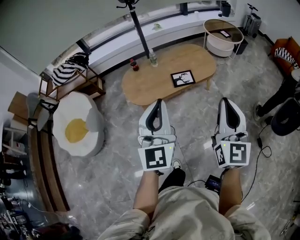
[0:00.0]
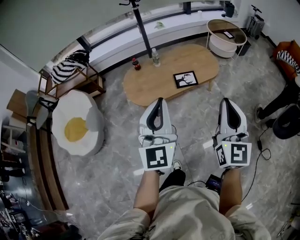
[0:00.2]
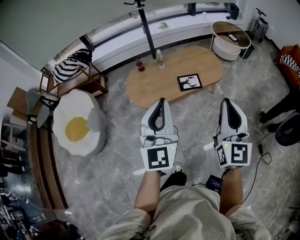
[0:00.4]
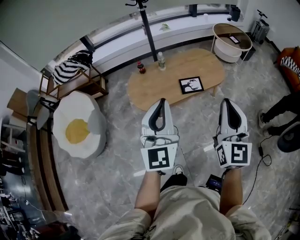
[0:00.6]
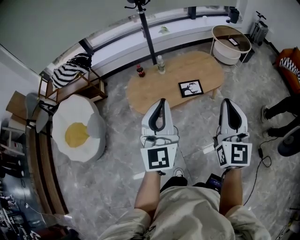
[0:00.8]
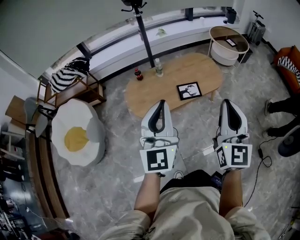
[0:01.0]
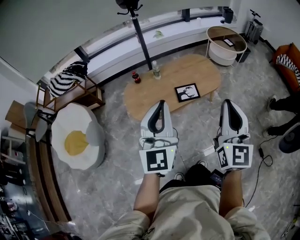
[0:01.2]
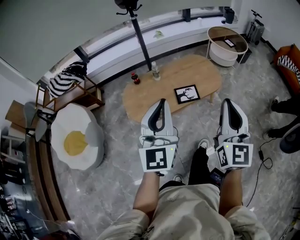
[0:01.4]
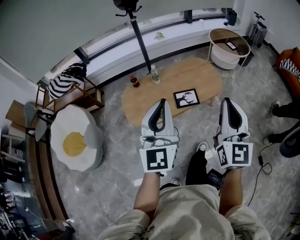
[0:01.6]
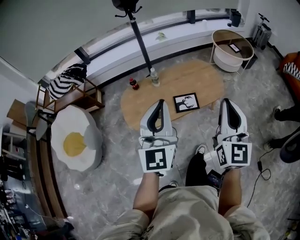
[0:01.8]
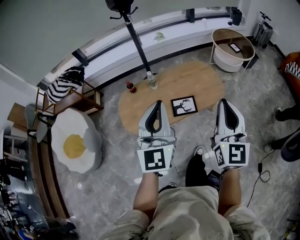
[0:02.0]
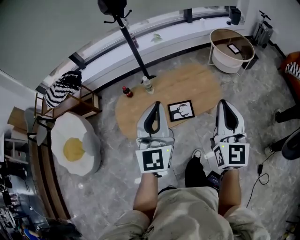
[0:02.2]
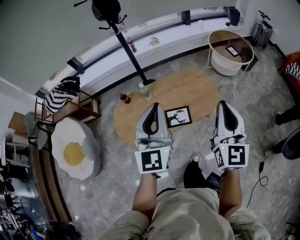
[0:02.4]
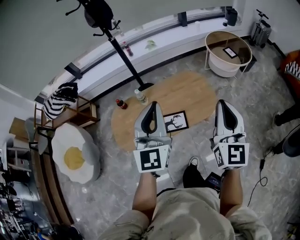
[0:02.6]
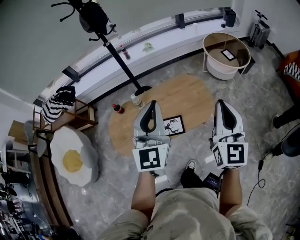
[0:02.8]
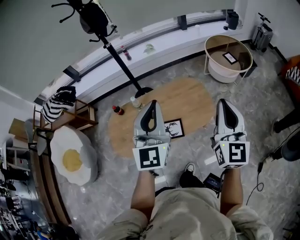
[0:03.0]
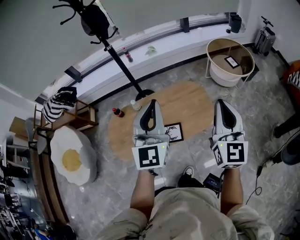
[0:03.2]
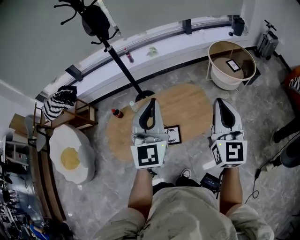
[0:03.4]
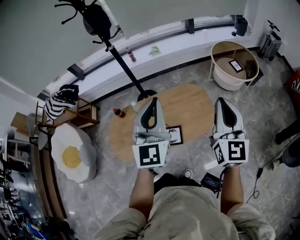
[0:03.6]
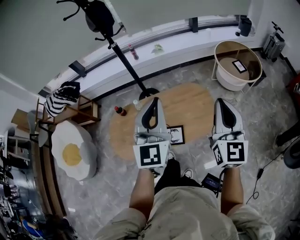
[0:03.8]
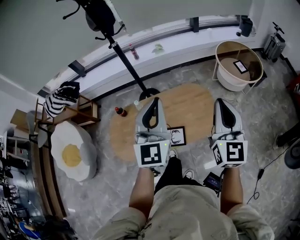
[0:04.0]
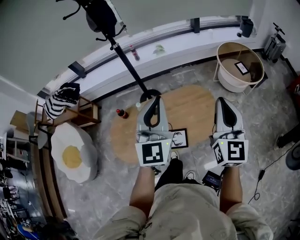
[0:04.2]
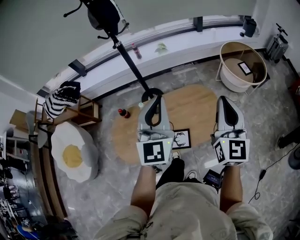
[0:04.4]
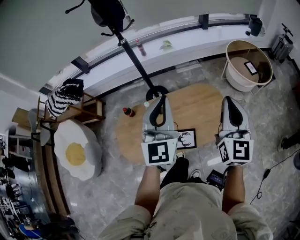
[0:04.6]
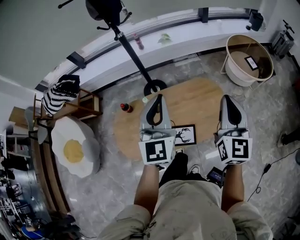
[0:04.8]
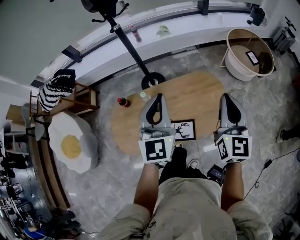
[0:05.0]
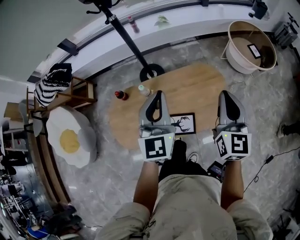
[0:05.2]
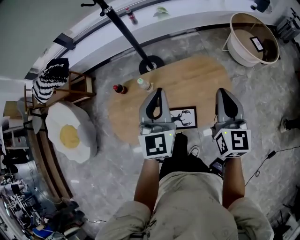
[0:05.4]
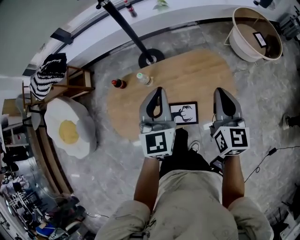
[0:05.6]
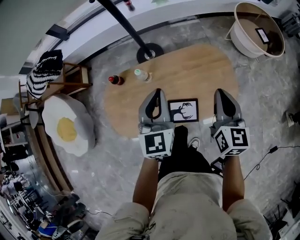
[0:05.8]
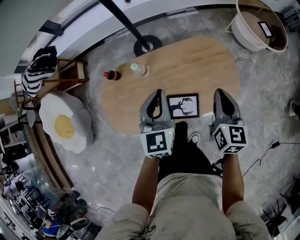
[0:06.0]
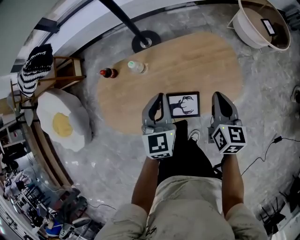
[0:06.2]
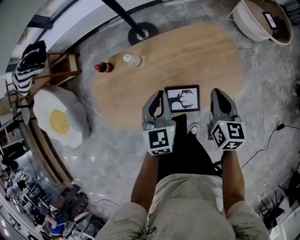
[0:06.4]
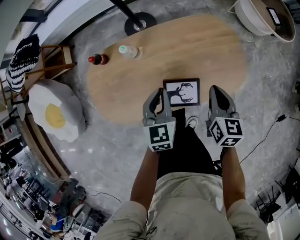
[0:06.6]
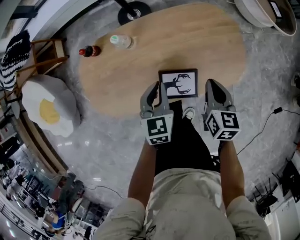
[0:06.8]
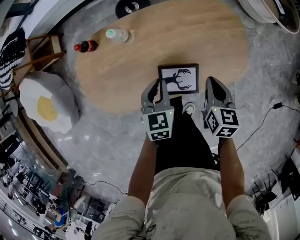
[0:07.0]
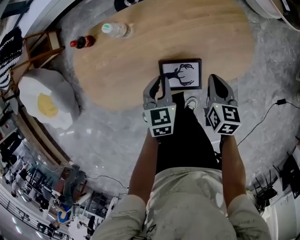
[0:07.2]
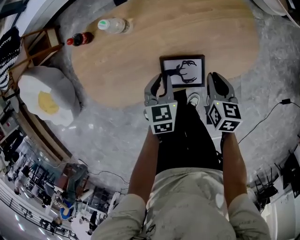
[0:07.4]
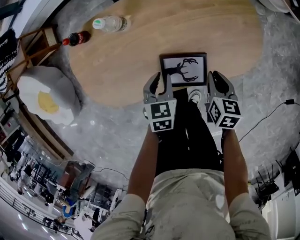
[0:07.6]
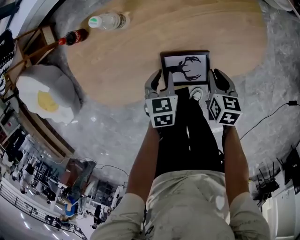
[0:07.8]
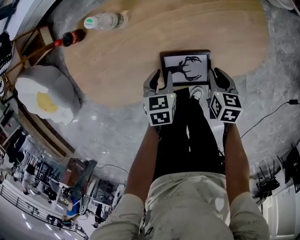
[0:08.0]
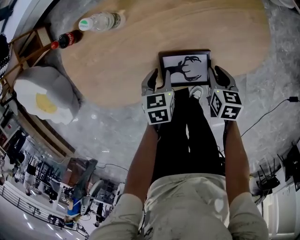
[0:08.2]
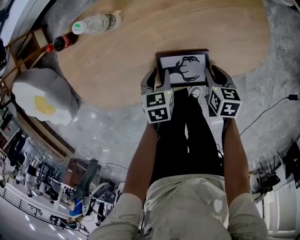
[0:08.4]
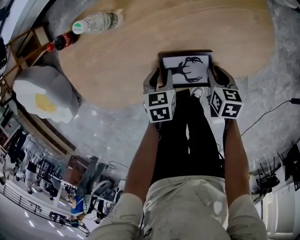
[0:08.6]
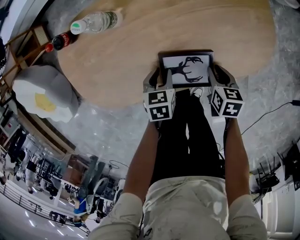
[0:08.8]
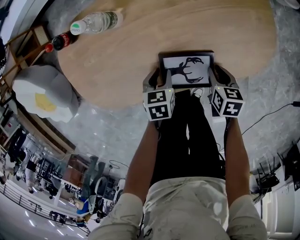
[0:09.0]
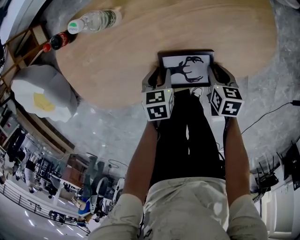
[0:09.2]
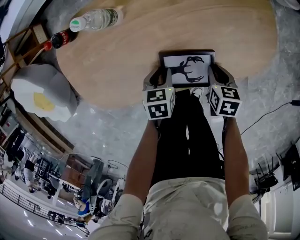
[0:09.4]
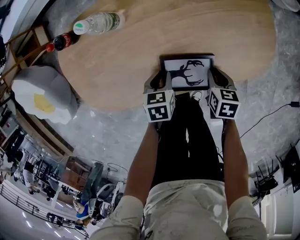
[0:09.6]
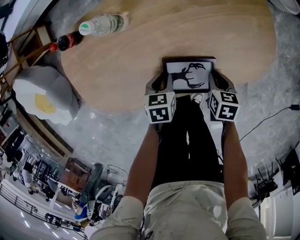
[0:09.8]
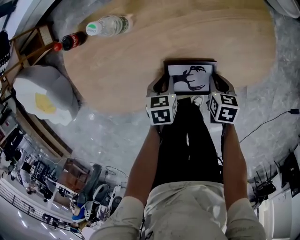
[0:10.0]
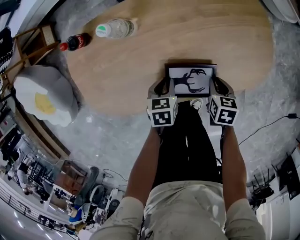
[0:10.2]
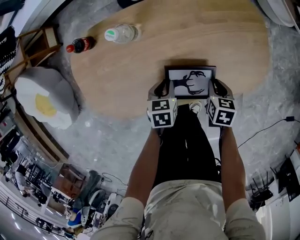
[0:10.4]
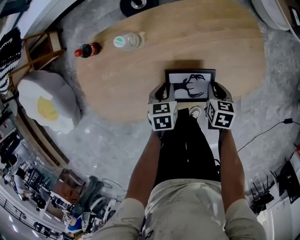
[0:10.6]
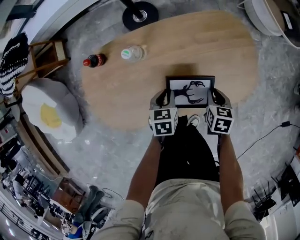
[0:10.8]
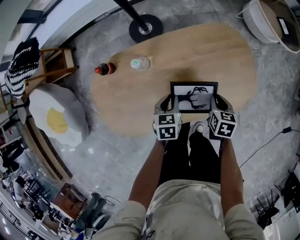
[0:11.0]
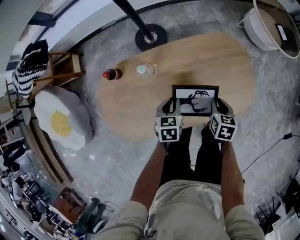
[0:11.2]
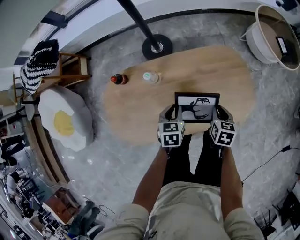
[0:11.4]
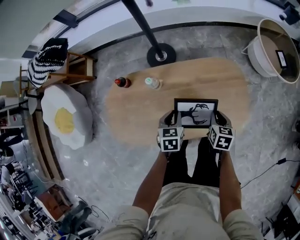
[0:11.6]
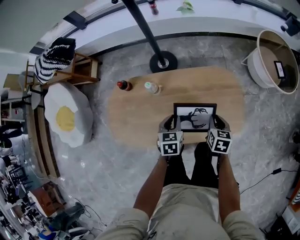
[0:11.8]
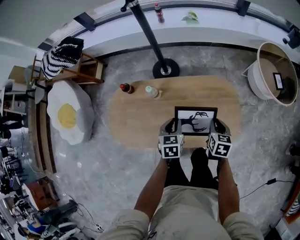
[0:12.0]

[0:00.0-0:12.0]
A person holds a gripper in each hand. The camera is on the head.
0:00.0 to 0:01.6: Both grippers move forward, some 15 cm.
0:01.6 to 0:03.0: Both grippers move forward and to the right, about 35 cm.
0:03.0 to 0:04.4: The left gripper heads forward, covering roughly 10 cm; the right gripper shifts approximately 15 cm forward and to the left.
0:04.4 to 0:06.0: Both grippers travel together downward, approximately 25 cm. The left gripper rotates roughly 30 degrees. The right gripper rotates some 30 degrees.
0:06.0 to 0:07.6: The two grippers go roughly 30 cm downward. The right gripper swivels roughly 30 degrees, while the left gripper tilts its fingers approximately 30 degrees downward, and opens its fingers.
0:07.6 to 0:09.0: The grippers both shift downward by about 10 cm.
0:09.0 to 0:10.4: There are only small adjustments of the grippers.
0:10.4 to 0:12.0: The left gripper travels upward by approximately 25 cm, and changes its angle by approximately 20 degrees; the right gripper heads upward and forward, covering approximately 25 cm, and turns by approximately 20 degrees.

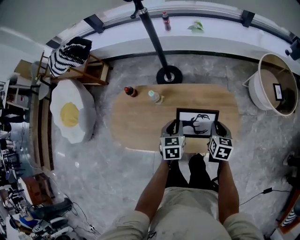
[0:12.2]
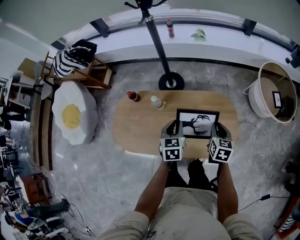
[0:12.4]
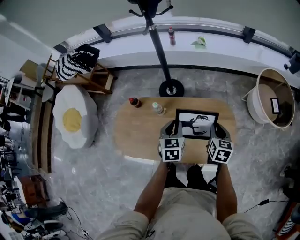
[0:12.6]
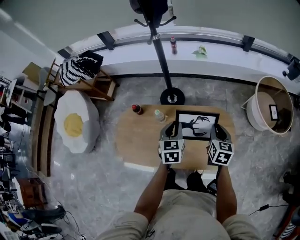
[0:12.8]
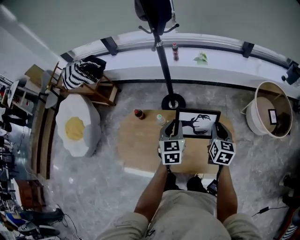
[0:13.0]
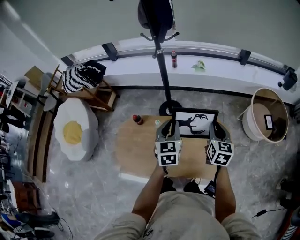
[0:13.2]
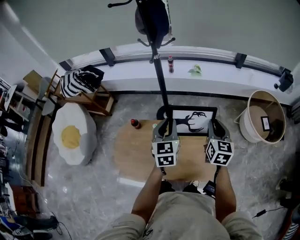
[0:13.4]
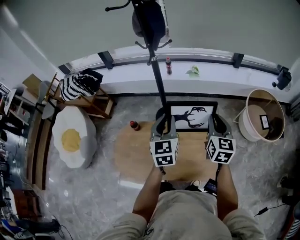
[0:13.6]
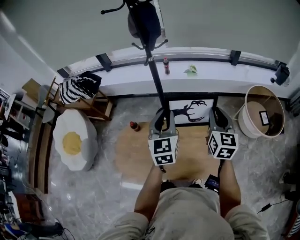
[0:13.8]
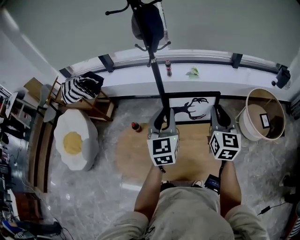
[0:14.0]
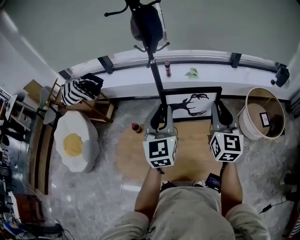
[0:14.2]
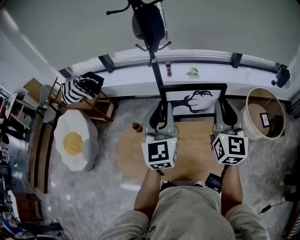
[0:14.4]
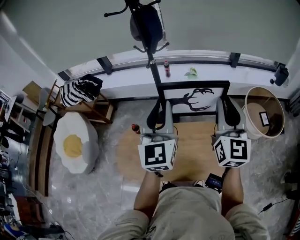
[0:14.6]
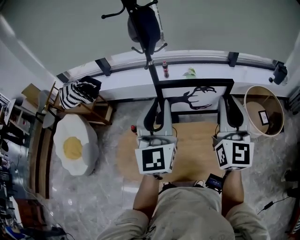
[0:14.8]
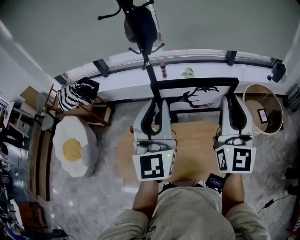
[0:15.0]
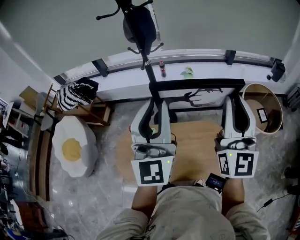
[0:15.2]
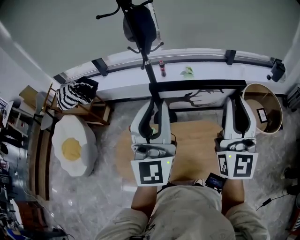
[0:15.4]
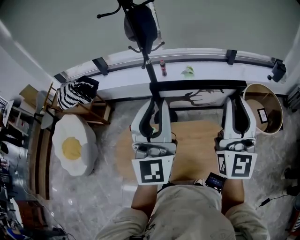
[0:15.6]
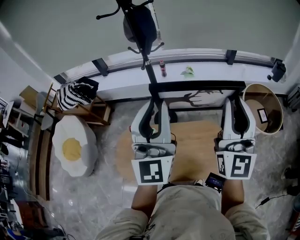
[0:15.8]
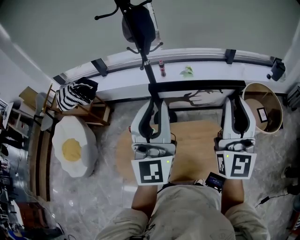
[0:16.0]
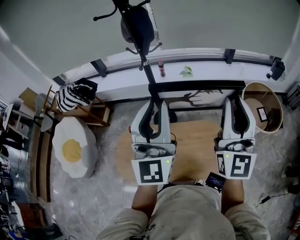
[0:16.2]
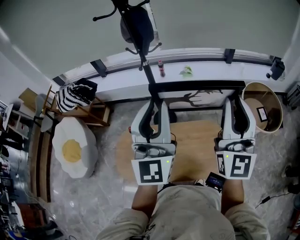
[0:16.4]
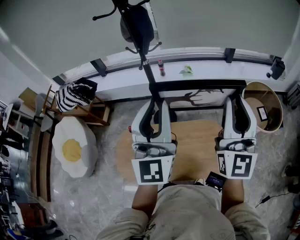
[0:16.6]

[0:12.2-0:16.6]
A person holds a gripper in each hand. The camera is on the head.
0:12.2 to 0:13.6: The grippers both shift upward by roughly 25 cm. The right gripper tips its fingers upward by some 30 degrees. The left gripper turns by some 30 degrees.
0:13.6 to 0:15.2: Both grippers travel together upward, about 25 cm. The right gripper angles its fingers upward, by some 40 degrees. The left gripper angles its fingers upward, by approximately 40 degrees.
0:15.2 to 0:16.6: The grippers stay close to where they were, moving slightly.

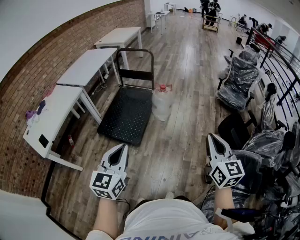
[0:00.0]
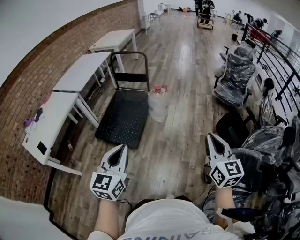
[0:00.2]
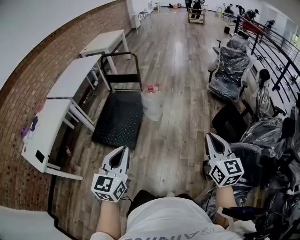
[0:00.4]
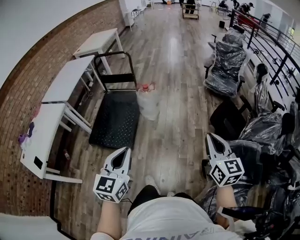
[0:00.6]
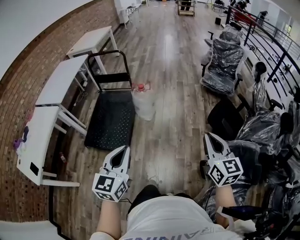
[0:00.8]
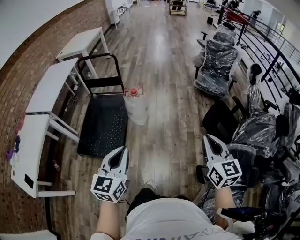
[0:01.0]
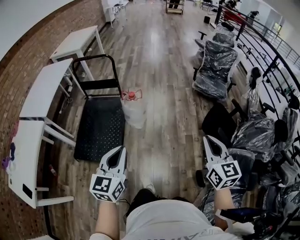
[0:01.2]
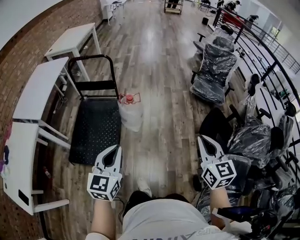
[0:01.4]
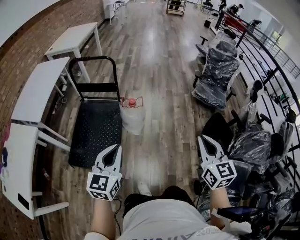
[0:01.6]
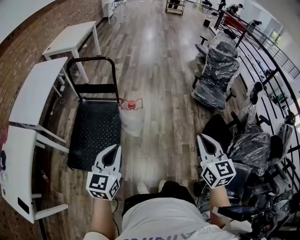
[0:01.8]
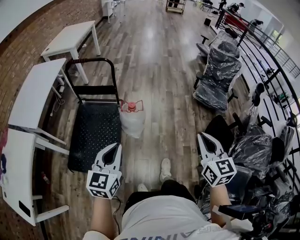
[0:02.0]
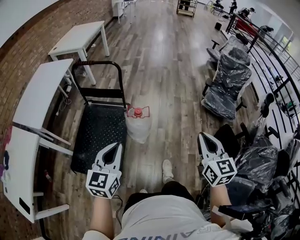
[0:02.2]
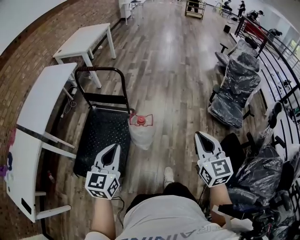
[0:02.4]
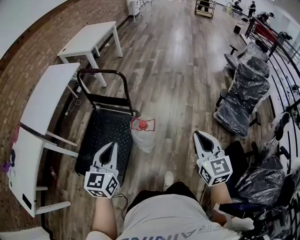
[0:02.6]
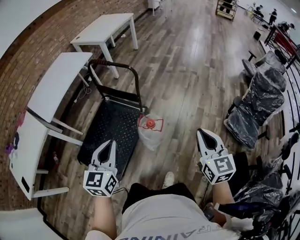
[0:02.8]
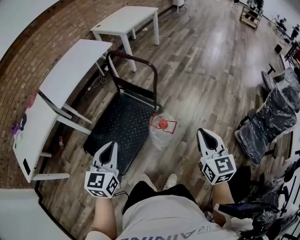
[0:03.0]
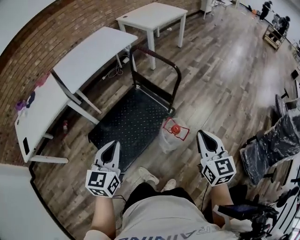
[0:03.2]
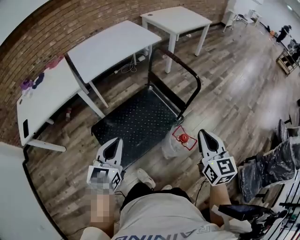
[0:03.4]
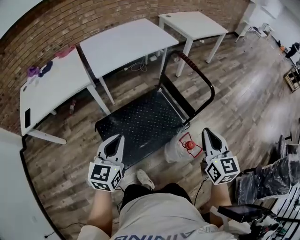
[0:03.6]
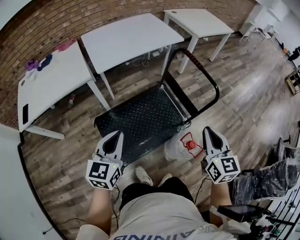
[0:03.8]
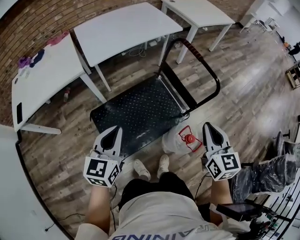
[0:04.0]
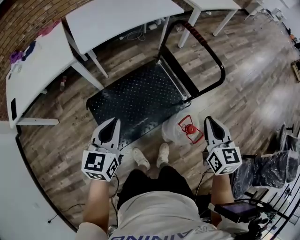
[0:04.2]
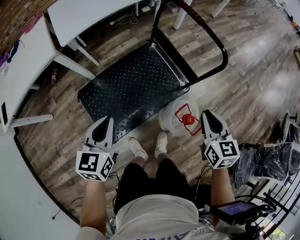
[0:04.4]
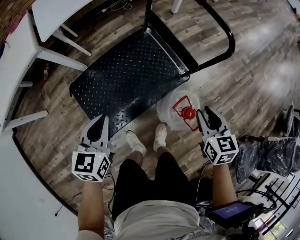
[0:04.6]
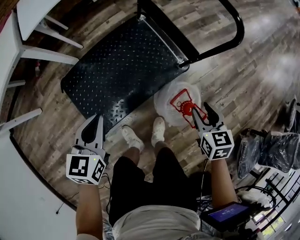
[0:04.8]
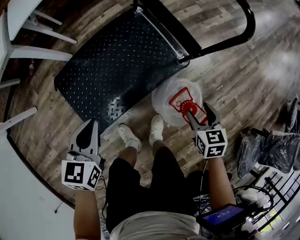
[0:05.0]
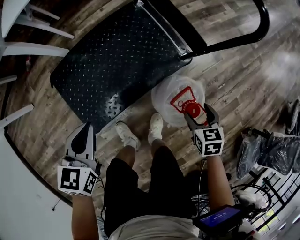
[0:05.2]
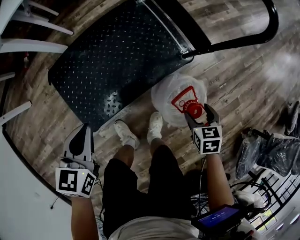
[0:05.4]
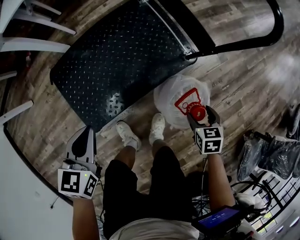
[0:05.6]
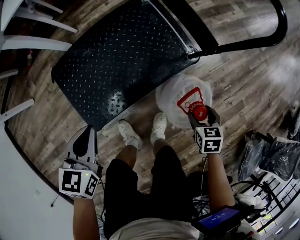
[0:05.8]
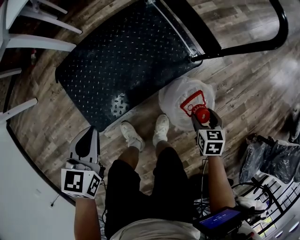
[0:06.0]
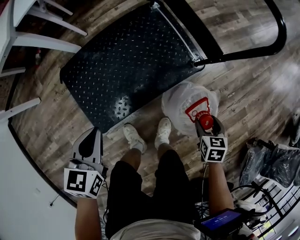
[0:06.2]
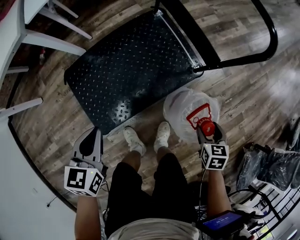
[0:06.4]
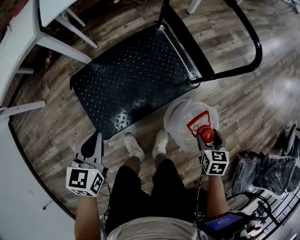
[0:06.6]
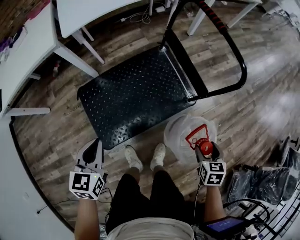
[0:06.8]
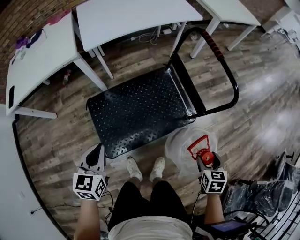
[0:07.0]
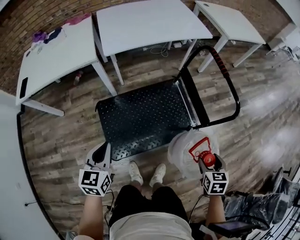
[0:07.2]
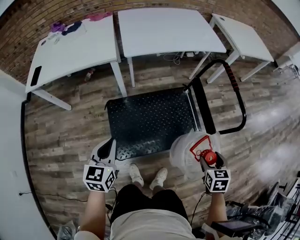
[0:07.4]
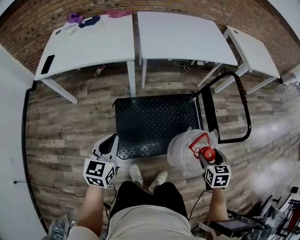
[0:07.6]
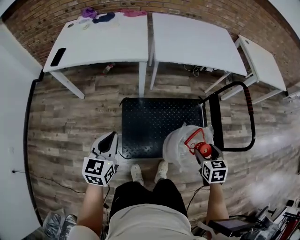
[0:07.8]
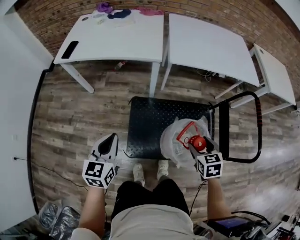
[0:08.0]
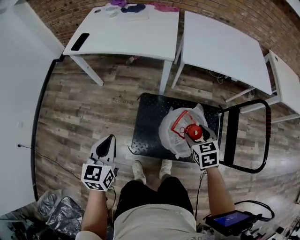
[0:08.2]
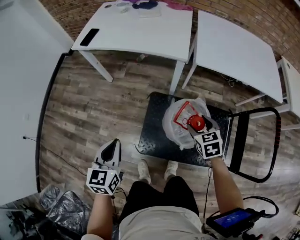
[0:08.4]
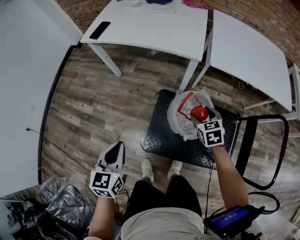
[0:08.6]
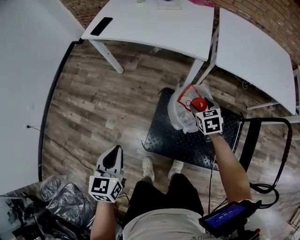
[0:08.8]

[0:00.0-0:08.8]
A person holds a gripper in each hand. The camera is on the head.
0:00.0 to 0:01.4: The two grippers go some 30 cm forward.
0:01.4 to 0:03.0: The left gripper ends up about 30 cm from where it was, and swivels some 40 degrees. Meanwhile the right gripper shifts by some 40 cm, and rotates about 30 degrees.
0:03.0 to 0:04.4: The right gripper shifts roughly 35 cm forward, downward and to the left, and turns by some 30 degrees; the left gripper heads downward, forward and to the left, covering about 25 cm, and rotates approximately 20 degrees.
0:04.4 to 0:05.8: The left gripper travels downward by about 20 cm. Meanwhile the right gripper goes some 35 cm downward, angles its fingers downward, by about 30 degrees, and opens its fingers.
0:05.8 to 0:07.4: The right gripper shifts roughly 35 cm upward, and rotates approximately 20 degrees, while the left gripper goes roughly 25 cm upward and to the left, and rotates some 30 degrees.
0:07.4 to 0:08.8: The right gripper changes place by about 50 cm, and turns by roughly 50 degrees, while the left gripper ends up roughly 20 cm from where it was, and turns by roughly 30 degrees.
